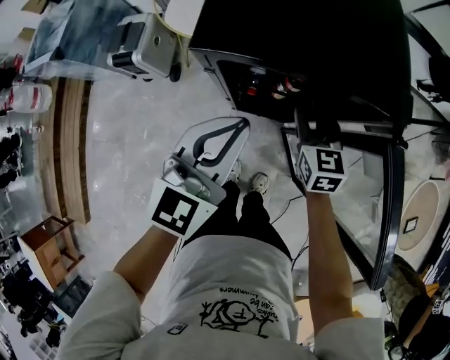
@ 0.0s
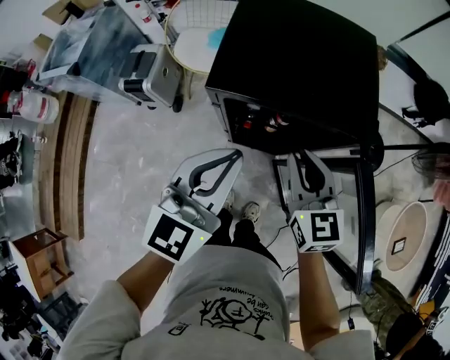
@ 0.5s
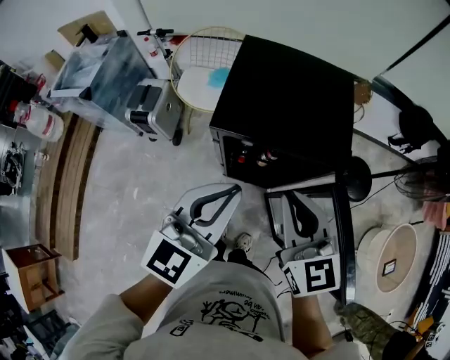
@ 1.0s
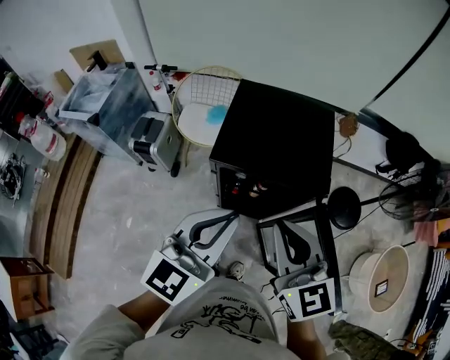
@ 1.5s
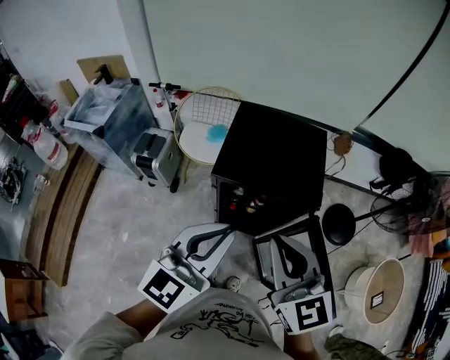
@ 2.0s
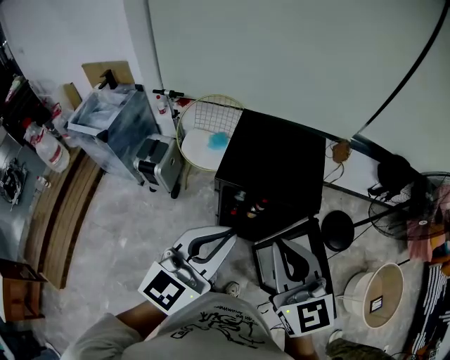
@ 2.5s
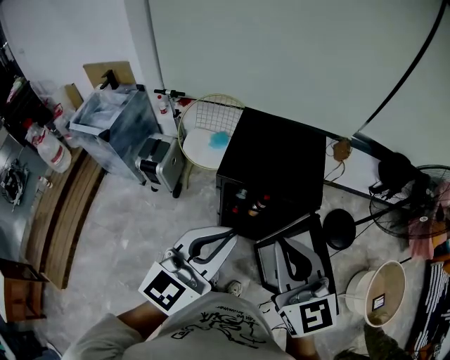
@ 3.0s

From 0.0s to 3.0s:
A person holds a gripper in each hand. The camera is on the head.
From 0.0s to 1.5s: The right gripper goes about 35 cm upward and backward, and swivels some 20 degrees, while the left gripper shifts approximately 20 cm upward.
From 1.5s to 3.0s: The left gripper ends up approximately 5 cm from where it was, while the right gripper travels upward by about 5 cm.

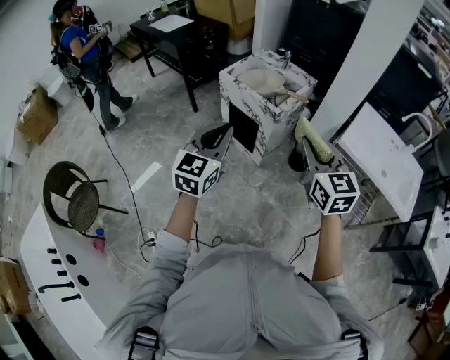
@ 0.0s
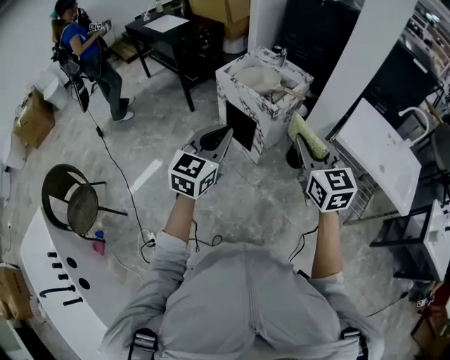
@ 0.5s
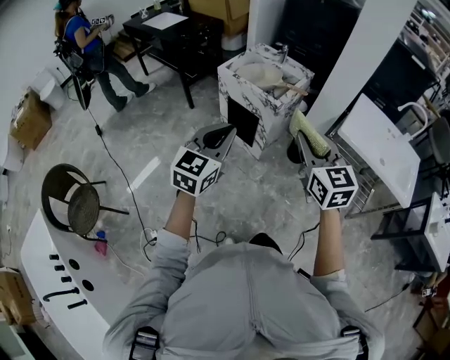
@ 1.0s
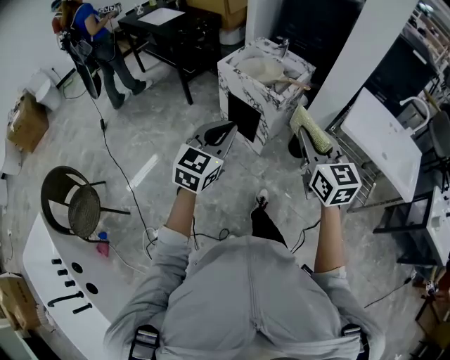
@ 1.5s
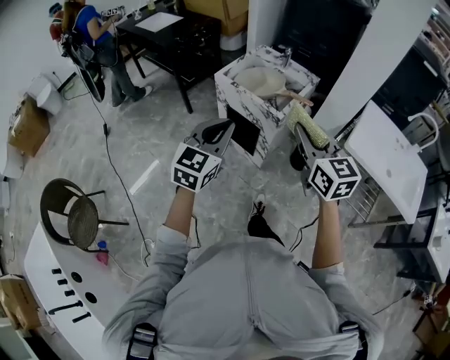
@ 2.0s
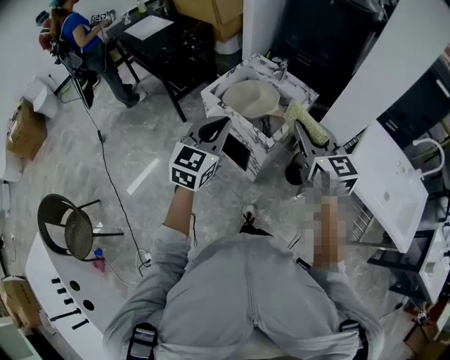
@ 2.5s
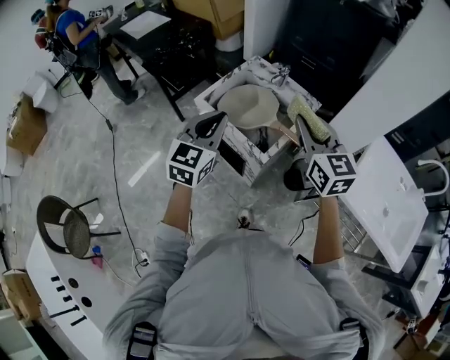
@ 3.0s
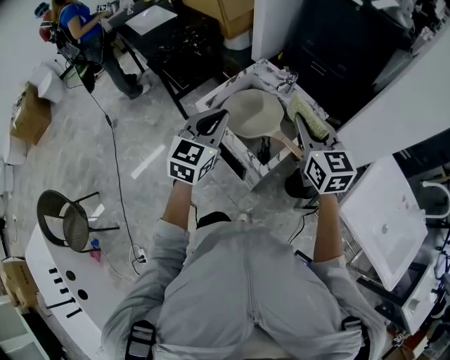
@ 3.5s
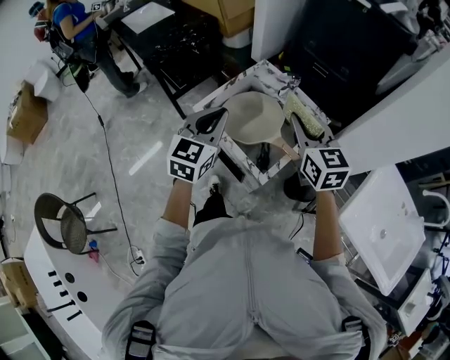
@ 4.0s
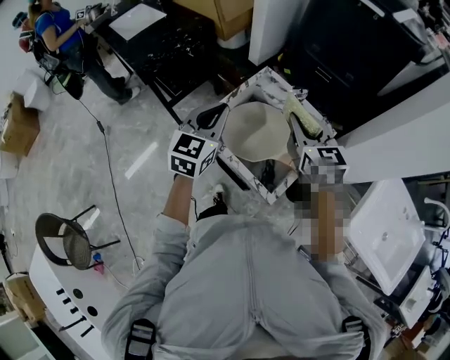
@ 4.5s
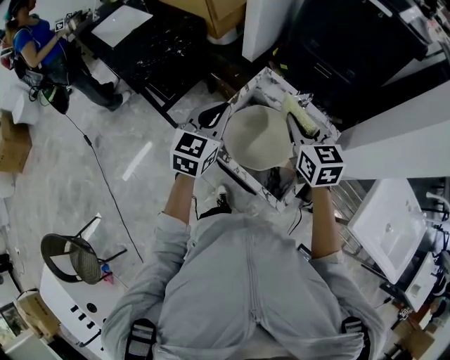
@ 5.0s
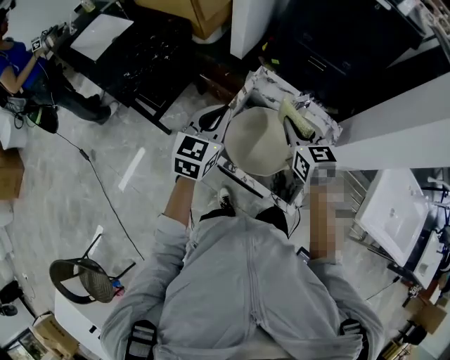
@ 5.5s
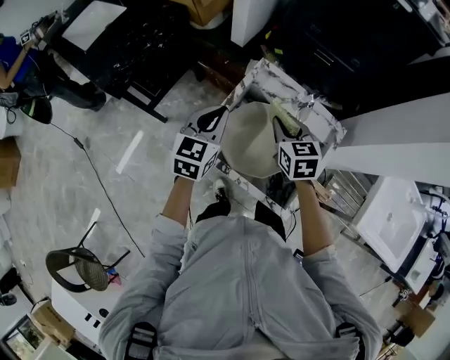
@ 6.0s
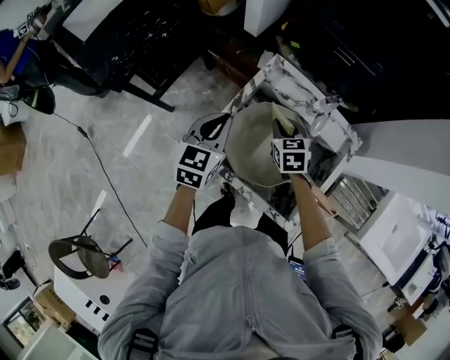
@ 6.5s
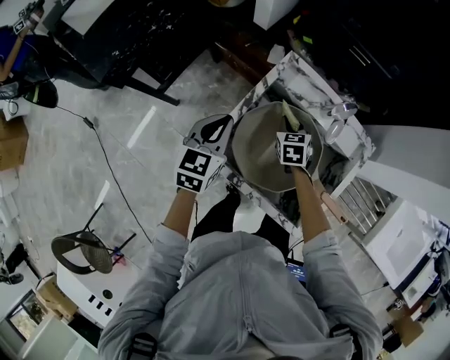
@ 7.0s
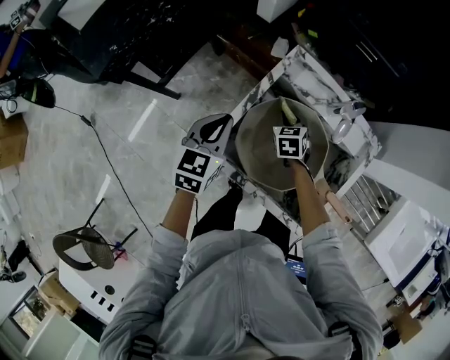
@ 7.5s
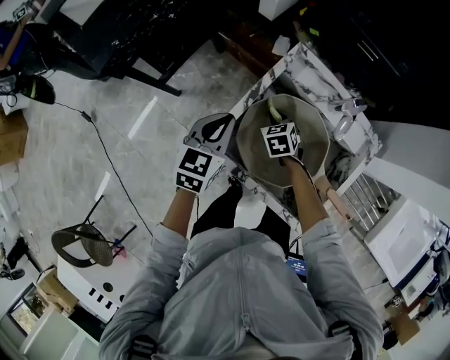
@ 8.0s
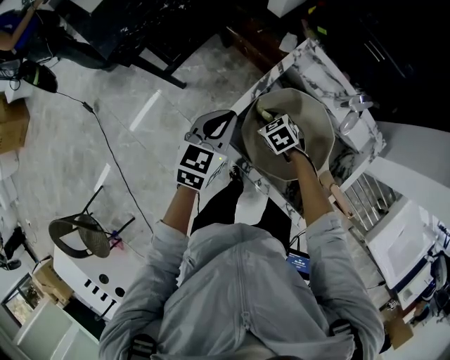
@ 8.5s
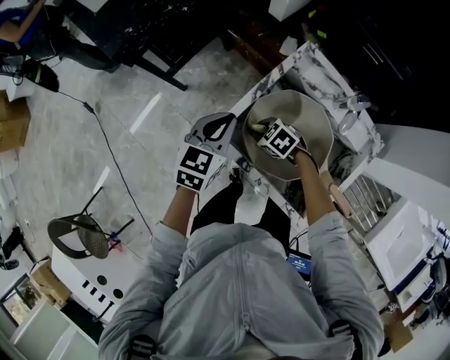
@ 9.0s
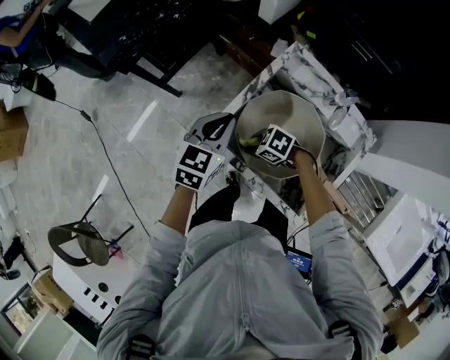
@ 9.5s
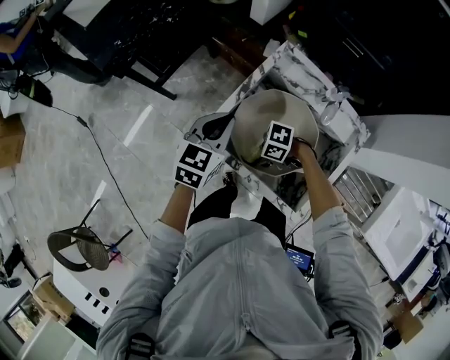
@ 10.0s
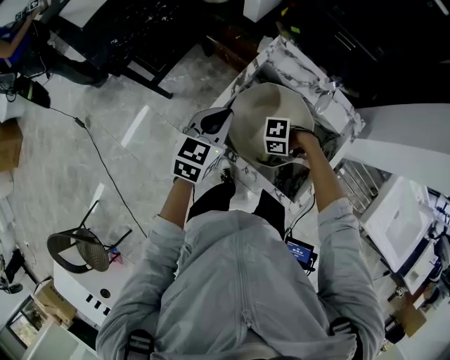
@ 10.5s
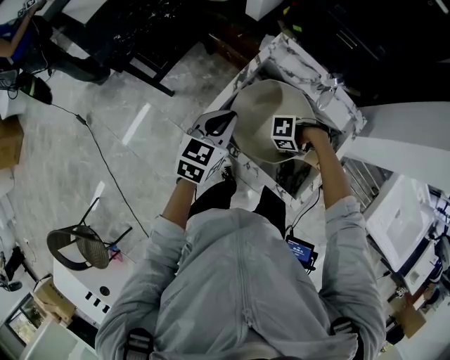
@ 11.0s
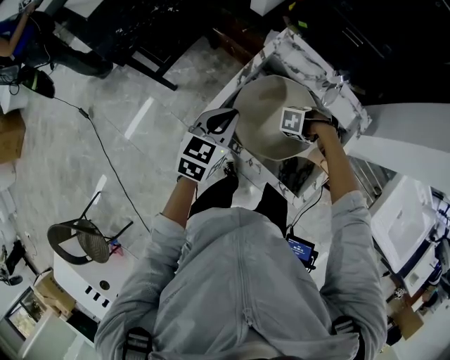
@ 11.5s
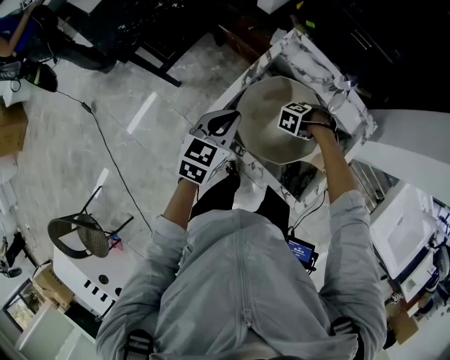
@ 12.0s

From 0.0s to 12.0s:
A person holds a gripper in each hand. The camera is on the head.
From 0.0s to 2.0s: The left gripper moves forward, approximately 10 cm; the right gripper is displaced forward and to the left by roughly 15 cm.
From 2.0s to 4.0s: The two grippers travel together, forward, about 40 cm.
From 4.0s to 6.0s: The right gripper heads forward, downward and to the left, covering about 30 cm, and swivels about 30 degrees. Meanwhile the left gripper goes about 30 cm forward and downward.
From 6.0s to 8.0s: The left gripper heads downward, covering roughly 10 cm. The right gripper shifts some 25 cm downward, and rotates roughly 20 degrees.
From 8.0s to 10.0s: The right gripper shifts by some 20 cm, and changes its angle by some 80 degrees, while the left gripper ends up roughly 5 cm from where it was.
From 10.0s to 12.0s: The right gripper ends up approximately 20 cm from where it was, and points its fingers approximately 30 degrees further downward.

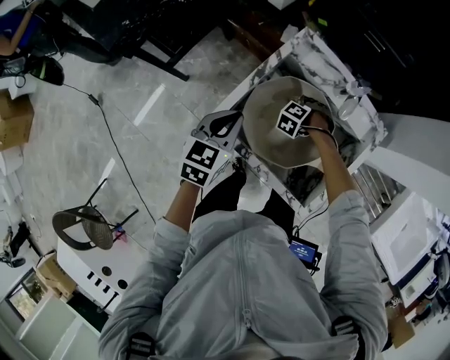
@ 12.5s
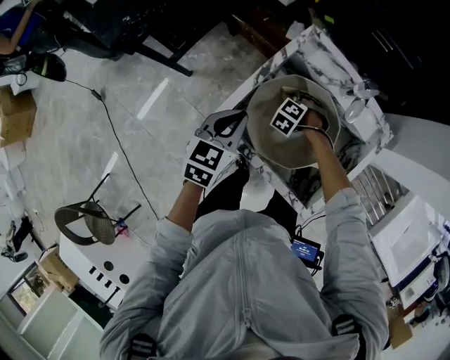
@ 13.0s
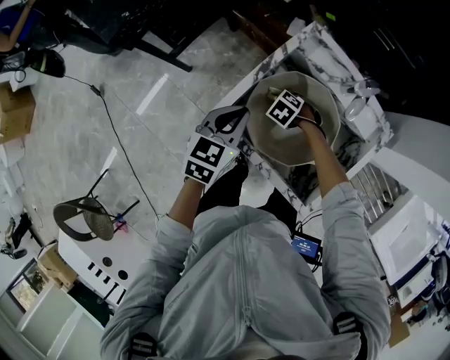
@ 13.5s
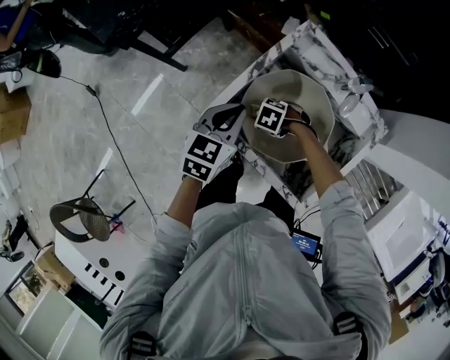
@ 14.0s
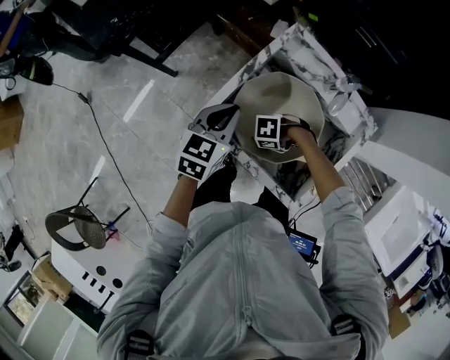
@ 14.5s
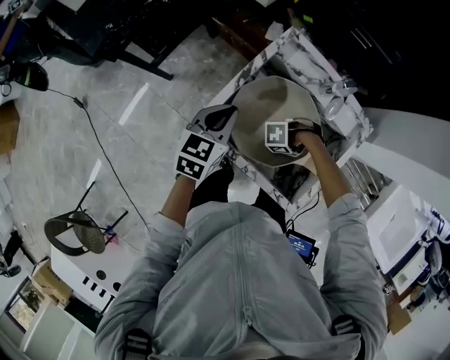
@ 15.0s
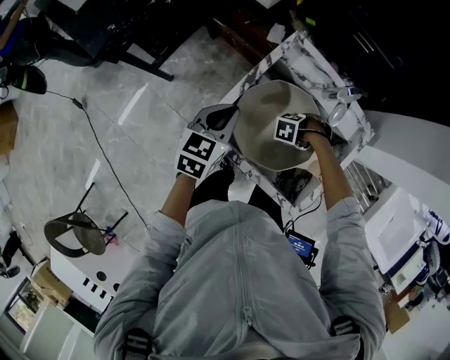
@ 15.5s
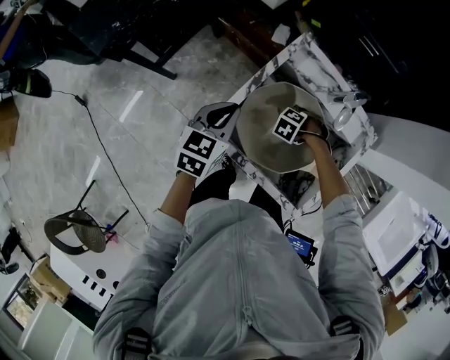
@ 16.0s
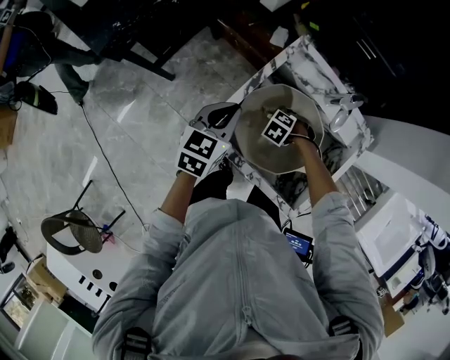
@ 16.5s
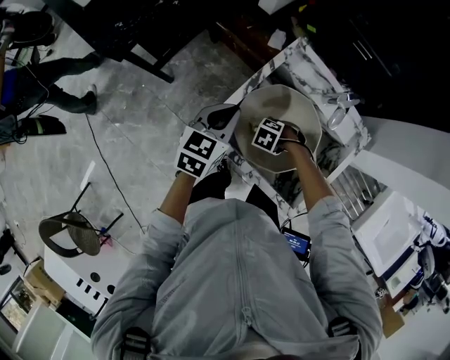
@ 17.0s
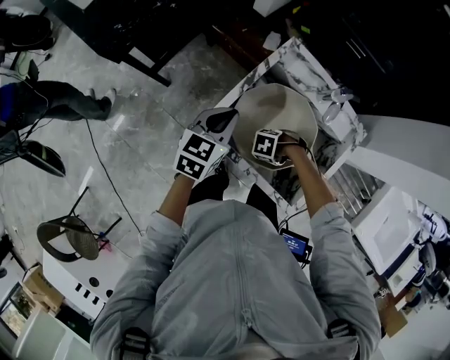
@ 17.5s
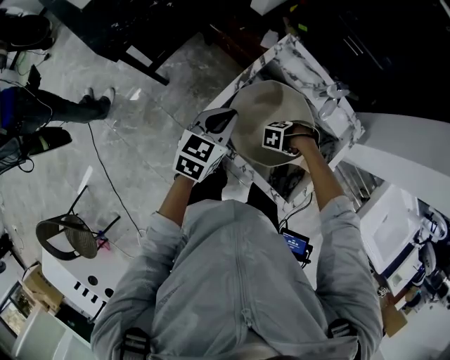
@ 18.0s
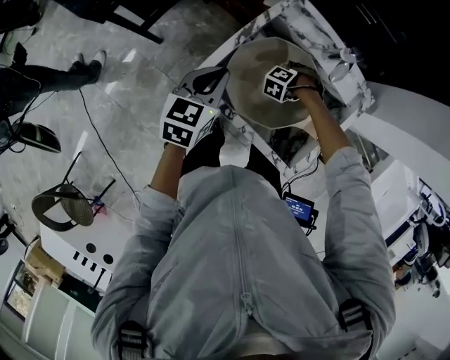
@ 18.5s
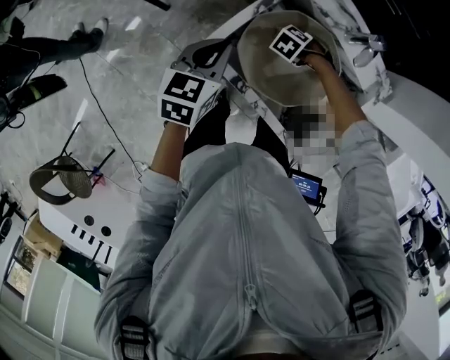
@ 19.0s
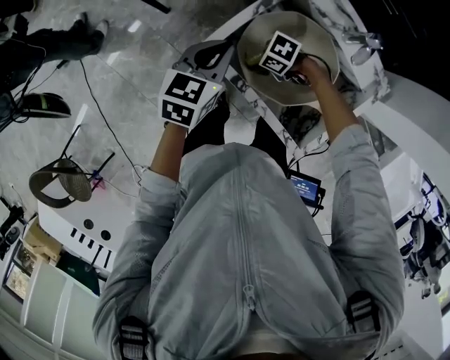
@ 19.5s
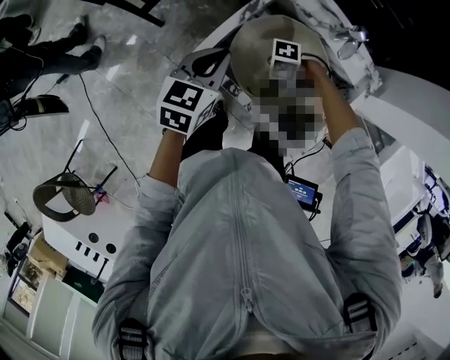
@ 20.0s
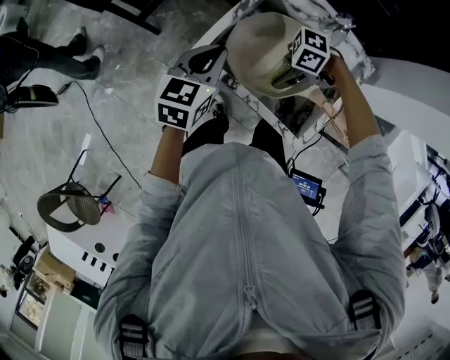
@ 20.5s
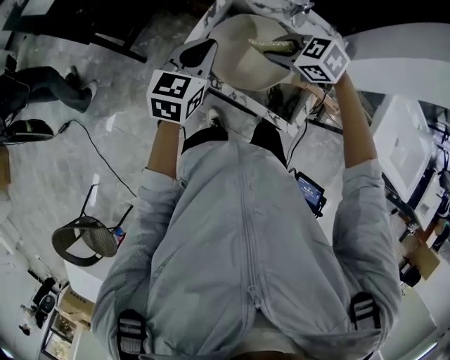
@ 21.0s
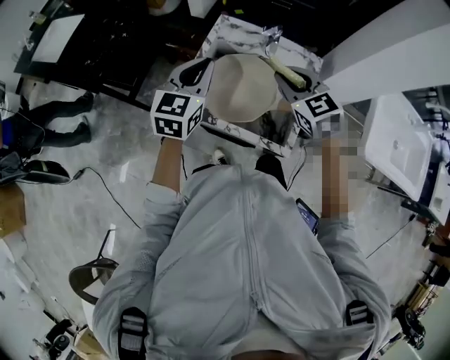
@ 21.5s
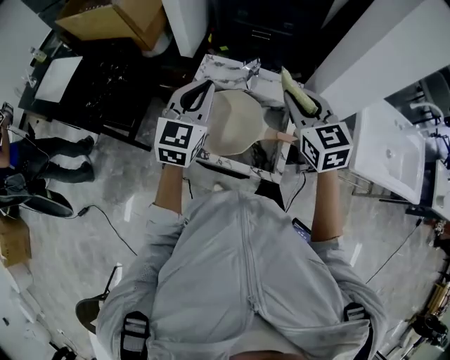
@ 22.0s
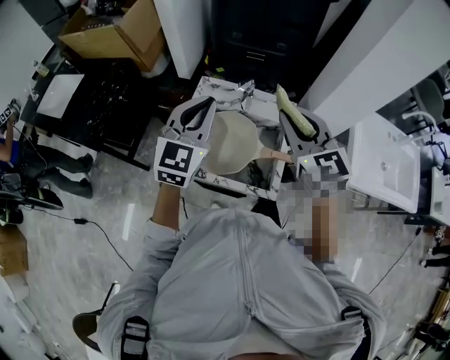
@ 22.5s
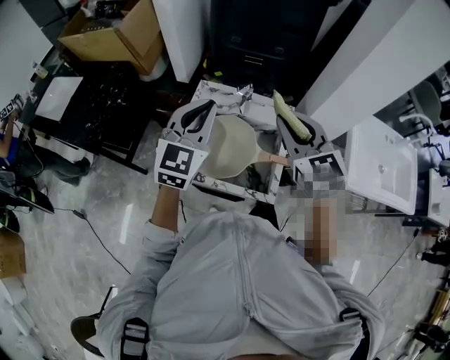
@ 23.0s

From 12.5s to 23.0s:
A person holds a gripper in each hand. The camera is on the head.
From 12.5s to 14.5s: The right gripper changes place by about 20 cm, and changes its angle by roughly 50 degrees.
From 14.5s to 16.5s: The right gripper shifts by roughly 15 cm, and changes its angle by approximately 40 degrees.
From 16.5s to 19.0s: The left gripper ends up about 5 cm from where it was.
From 19.0s to 21.0s: The left gripper moves upward, some 10 cm. The right gripper is displaced upward by approximately 25 cm, and angles its fingers upward, by some 40 degrees.
From 21.0s to 23.0s: The two grippers go approximately 20 cm upward. The left gripper turns by roughly 30 degrees; the right gripper tilts its fingers approximately 40 degrees upward.

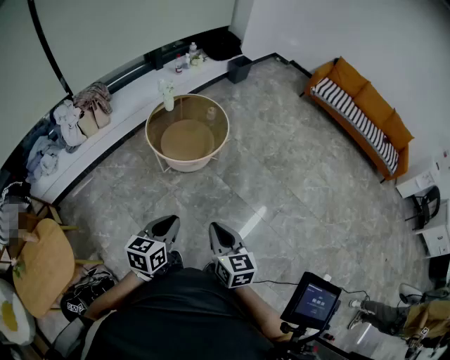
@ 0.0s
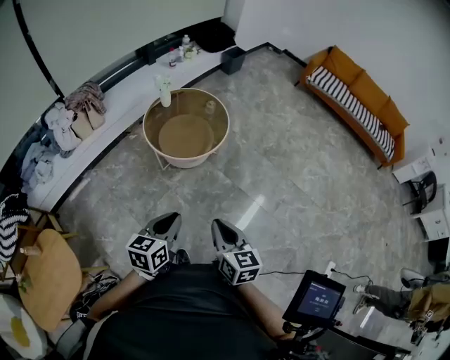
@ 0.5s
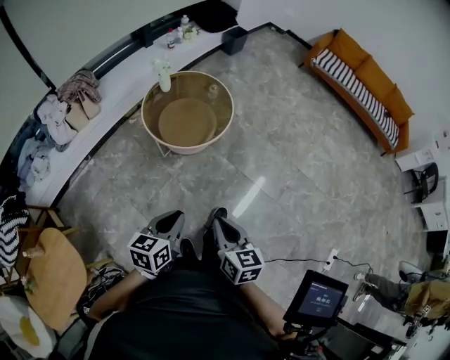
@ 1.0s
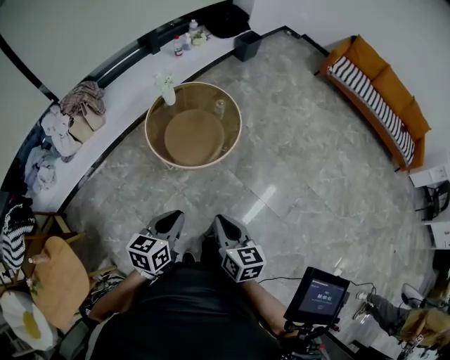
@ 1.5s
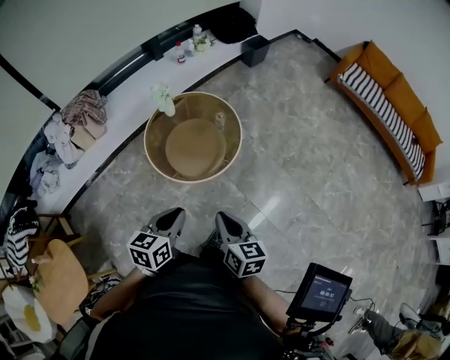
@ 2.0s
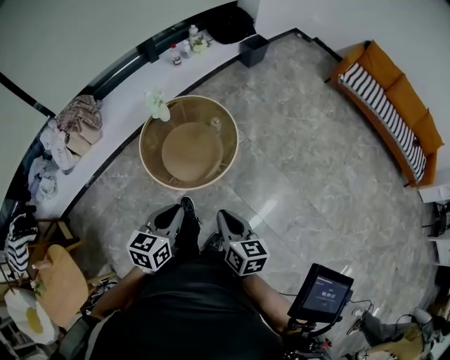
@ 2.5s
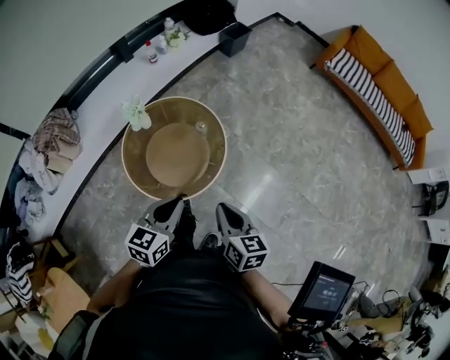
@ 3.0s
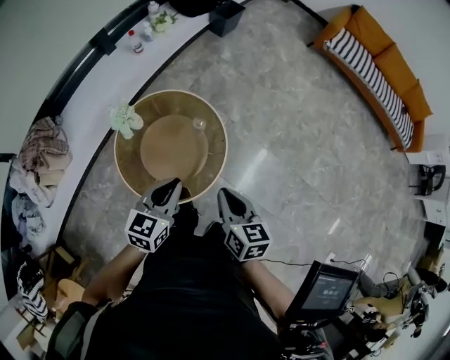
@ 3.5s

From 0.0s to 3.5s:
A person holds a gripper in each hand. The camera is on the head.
From 0.0s to 2.0s: Both grippers move forward, roughly 30 cm.
From 2.0s to 3.5s: Both grippers travel together forward, some 30 cm. The left gripper rotates roughly 20 degrees.
